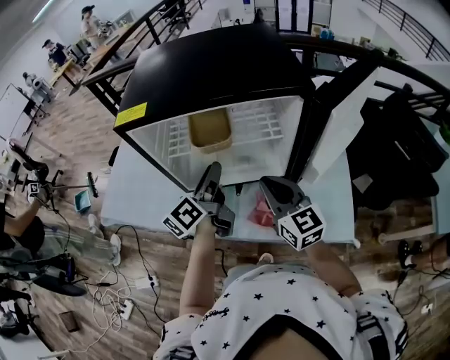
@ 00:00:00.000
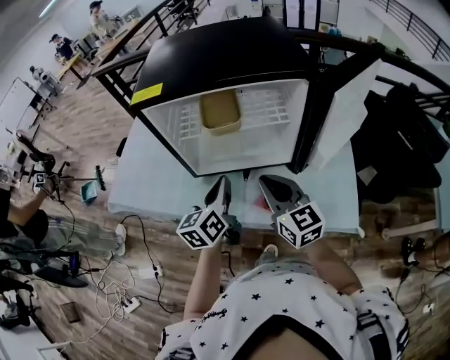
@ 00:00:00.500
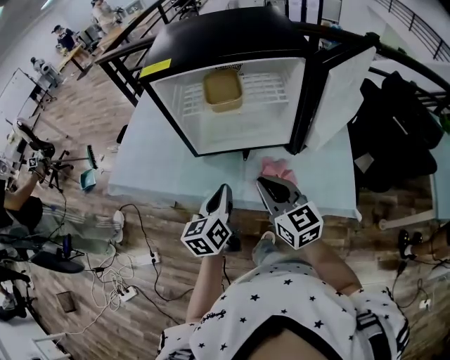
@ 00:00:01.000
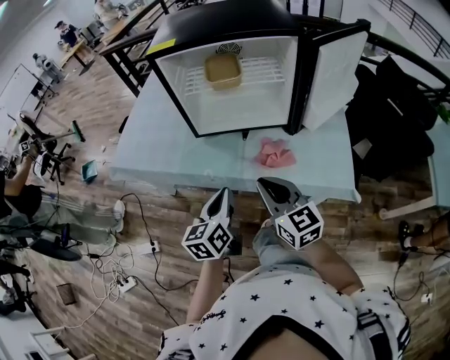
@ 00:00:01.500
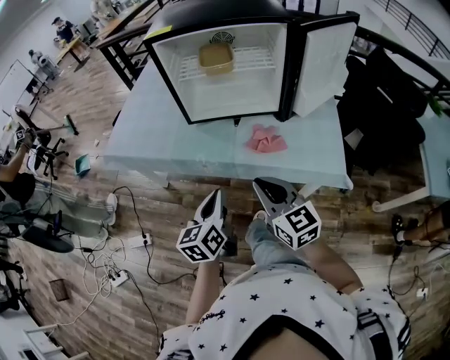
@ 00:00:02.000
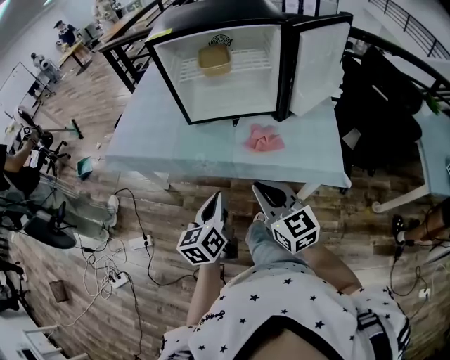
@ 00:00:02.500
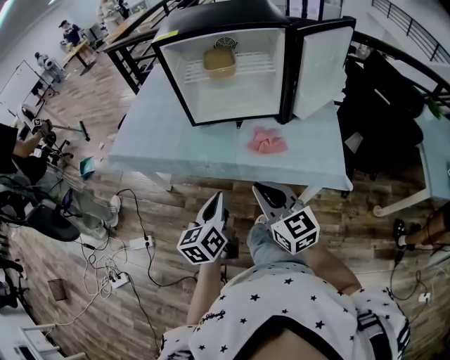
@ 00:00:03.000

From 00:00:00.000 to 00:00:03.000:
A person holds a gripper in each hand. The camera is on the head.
From 00:00:00.000 to 00:00:01.500: Both grippers move backward, some 25 cm. The left gripper swivels approximately 30 degrees, and closes.
From 00:00:01.500 to 00:00:03.000: Both grippers travel together backward, some 10 cm.

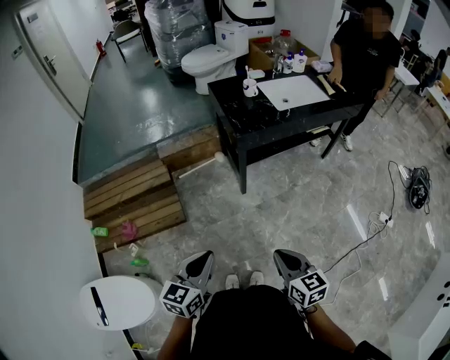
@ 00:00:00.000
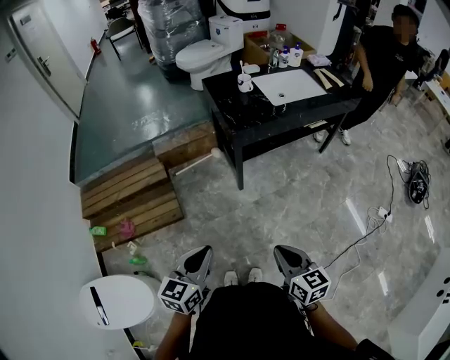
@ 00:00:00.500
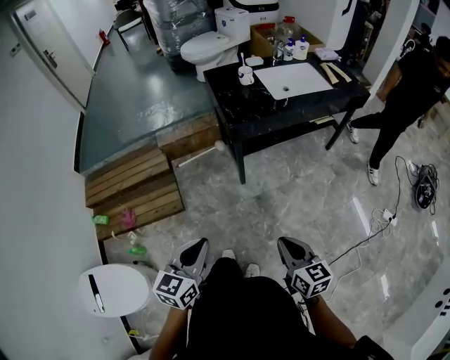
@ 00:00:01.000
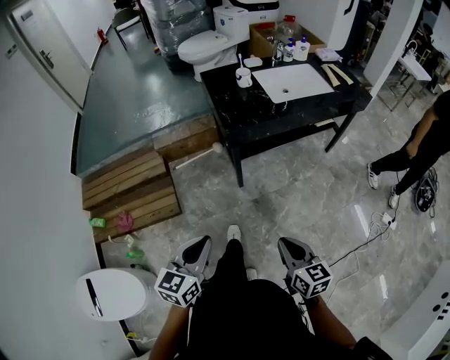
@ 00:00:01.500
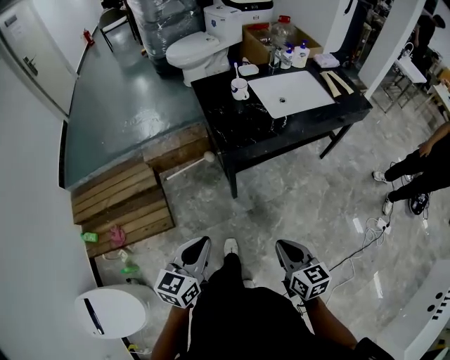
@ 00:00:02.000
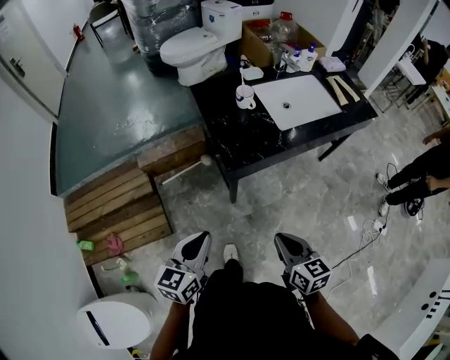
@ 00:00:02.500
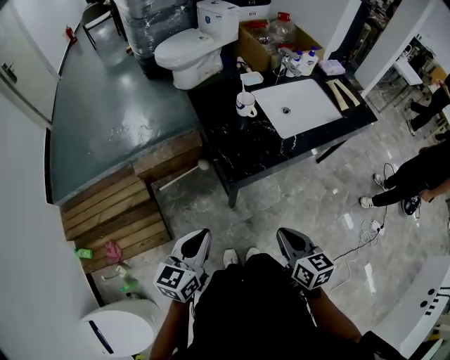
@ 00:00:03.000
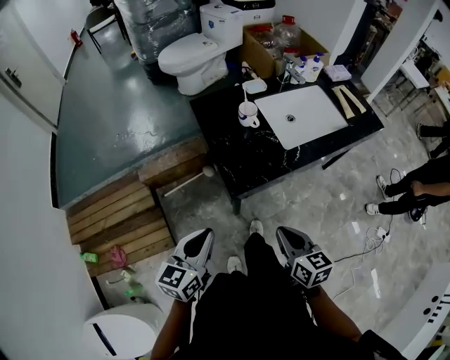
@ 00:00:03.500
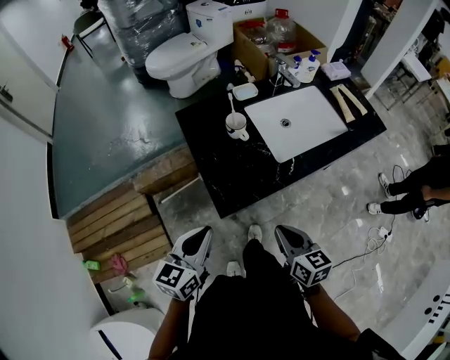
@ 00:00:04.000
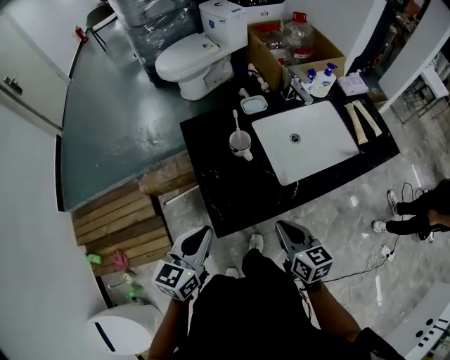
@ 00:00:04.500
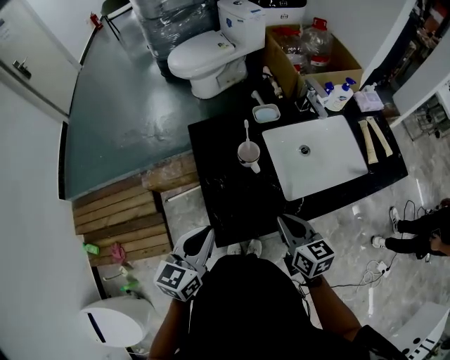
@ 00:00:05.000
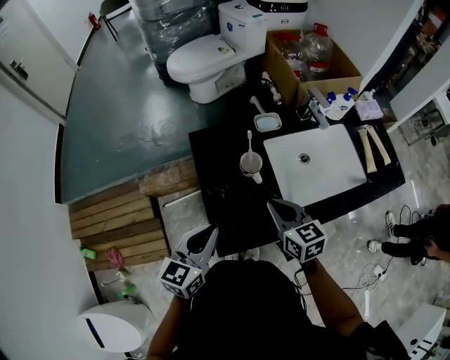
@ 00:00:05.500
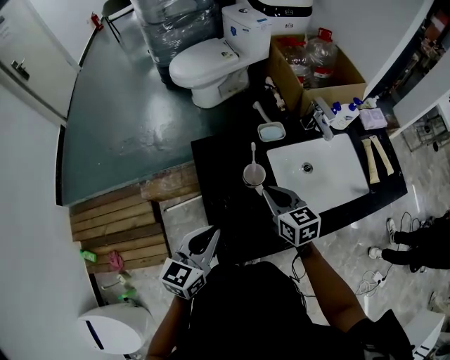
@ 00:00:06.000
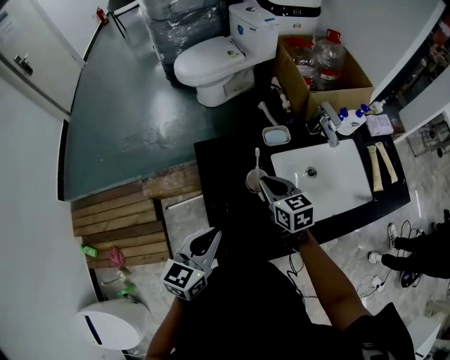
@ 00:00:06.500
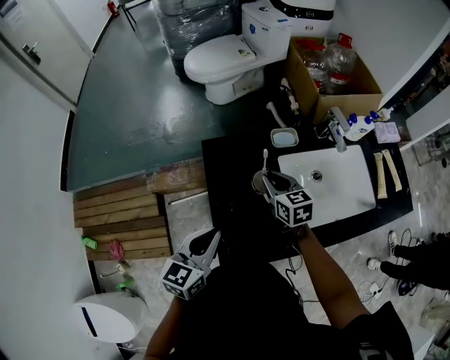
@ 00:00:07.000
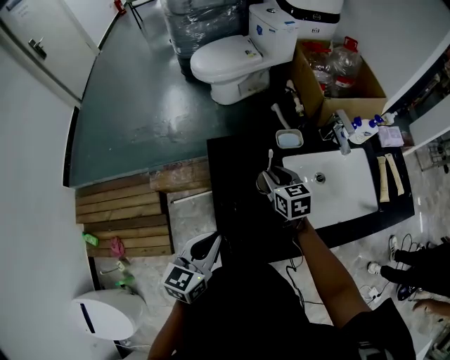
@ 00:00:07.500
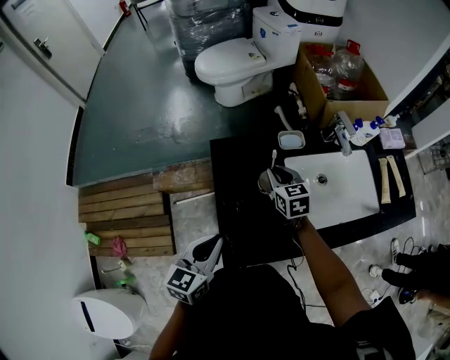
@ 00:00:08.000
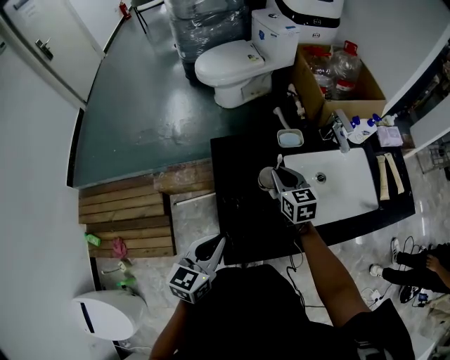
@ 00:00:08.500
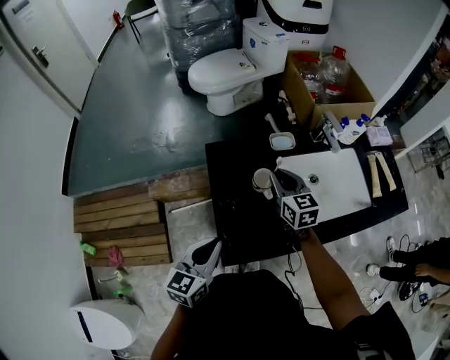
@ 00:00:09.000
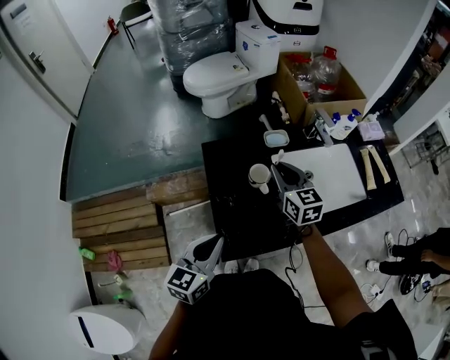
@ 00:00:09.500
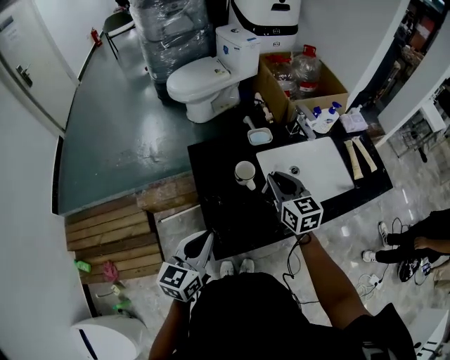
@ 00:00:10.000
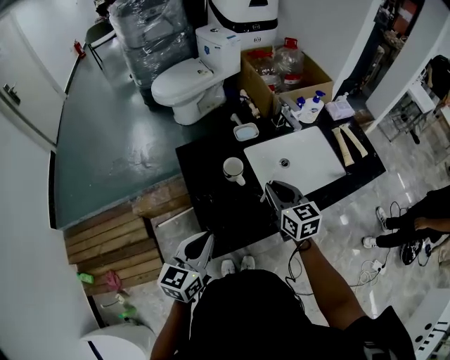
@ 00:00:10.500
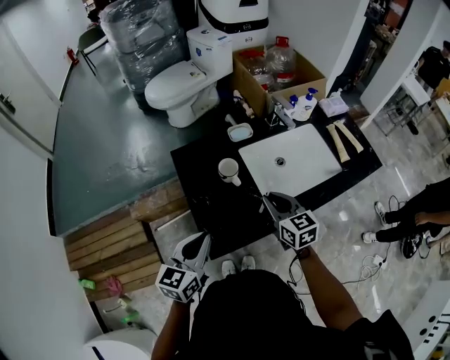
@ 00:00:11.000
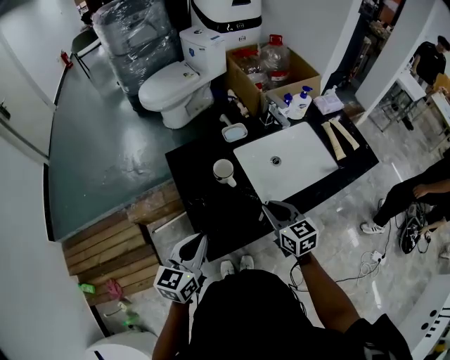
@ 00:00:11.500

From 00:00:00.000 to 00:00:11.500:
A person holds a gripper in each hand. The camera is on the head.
From 00:00:00.000 to 00:00:02.000: The right gripper is displaced forward and to the right by some 20 cm. Meanwhile the left gripper heads forward, covering roughly 20 cm.
From 00:00:02.000 to 00:00:04.000: Both grippers travel together forward, some 30 cm.
From 00:00:04.000 to 00:00:06.000: The right gripper shifts roughly 30 cm forward. Meanwhile the left gripper travels forward by about 20 cm.
From 00:00:06.000 to 00:00:07.500: The right gripper heads forward, covering approximately 10 cm, and opens up.
From 00:00:07.500 to 00:00:09.500: The left gripper ends up about 5 cm from where it was. The right gripper goes some 10 cm upward.
From 00:00:09.500 to 00:00:11.500: The right gripper goes some 20 cm backward, to the right and downward.

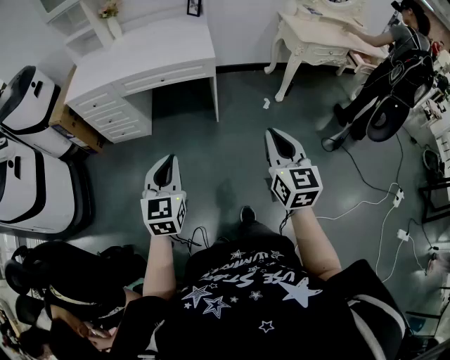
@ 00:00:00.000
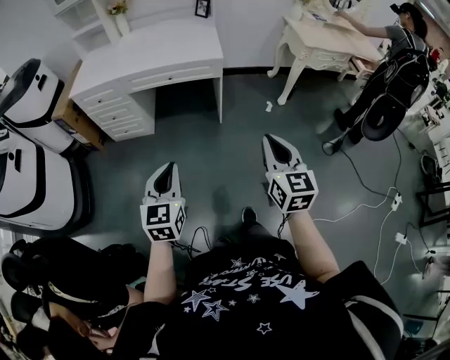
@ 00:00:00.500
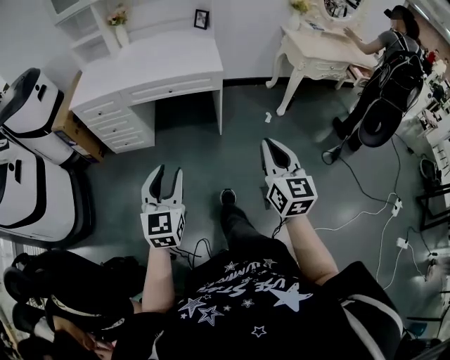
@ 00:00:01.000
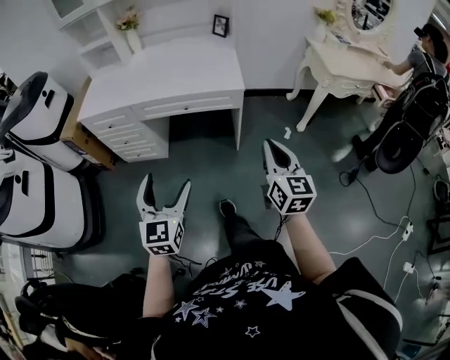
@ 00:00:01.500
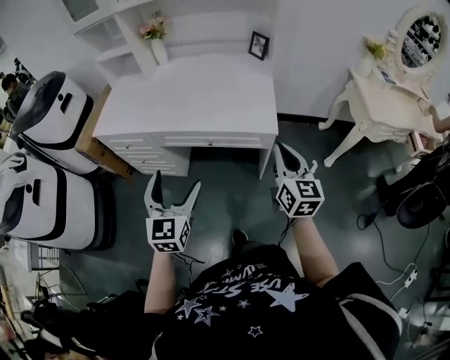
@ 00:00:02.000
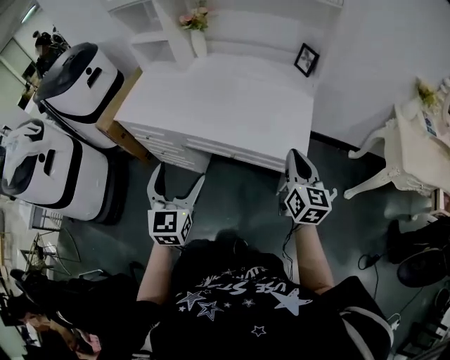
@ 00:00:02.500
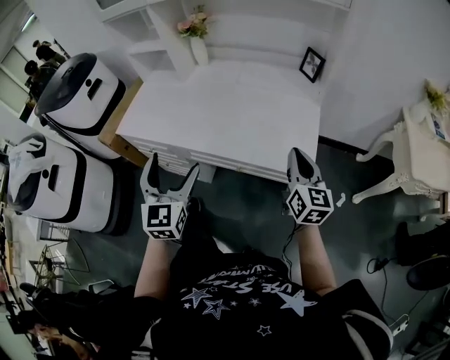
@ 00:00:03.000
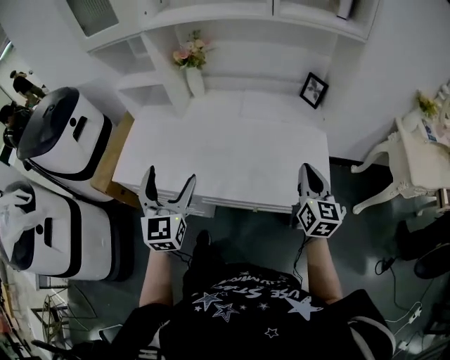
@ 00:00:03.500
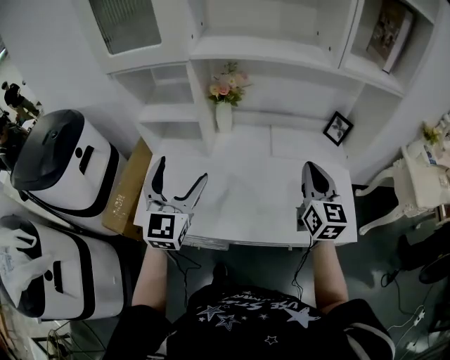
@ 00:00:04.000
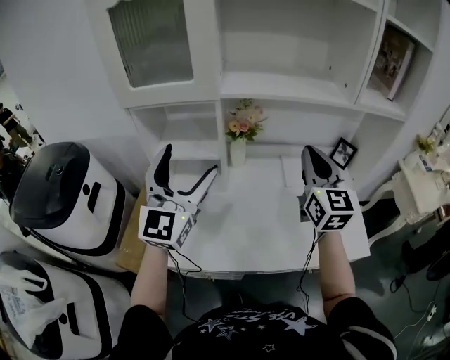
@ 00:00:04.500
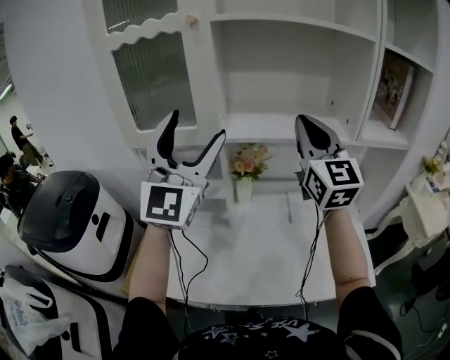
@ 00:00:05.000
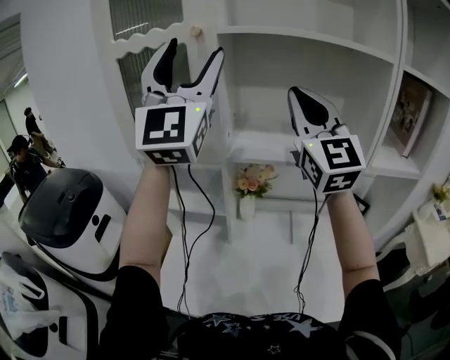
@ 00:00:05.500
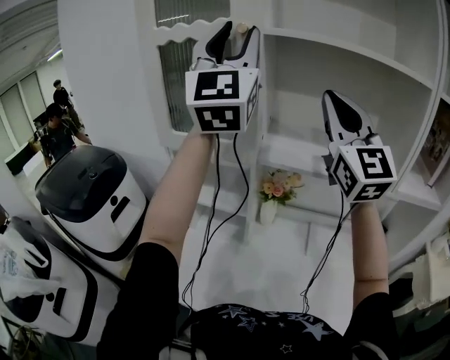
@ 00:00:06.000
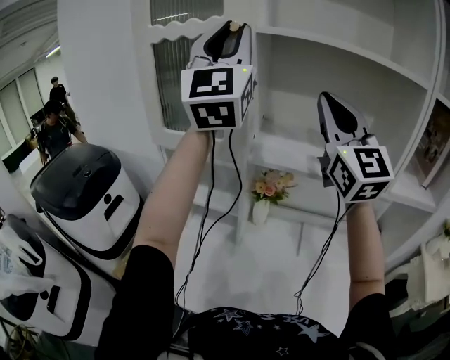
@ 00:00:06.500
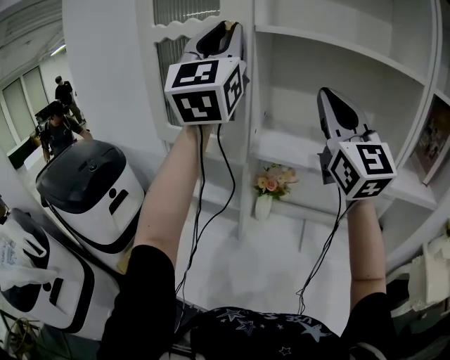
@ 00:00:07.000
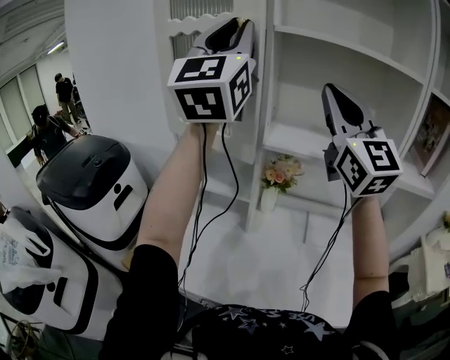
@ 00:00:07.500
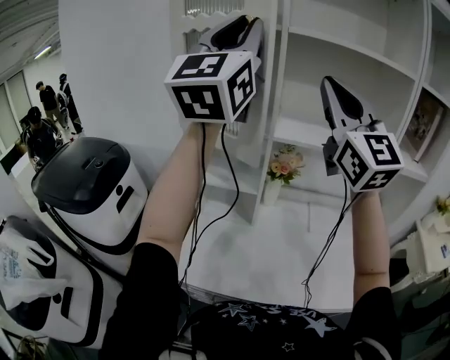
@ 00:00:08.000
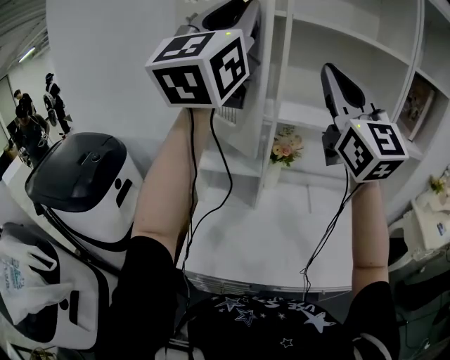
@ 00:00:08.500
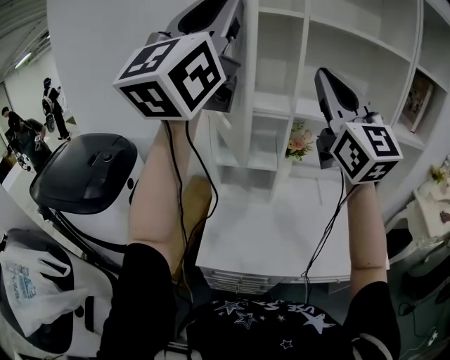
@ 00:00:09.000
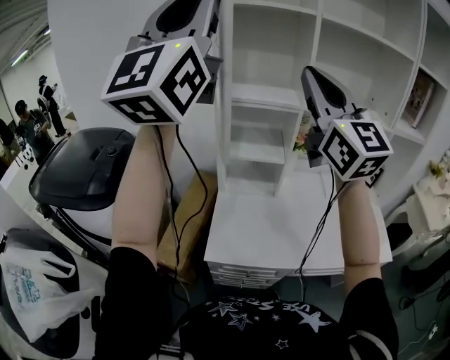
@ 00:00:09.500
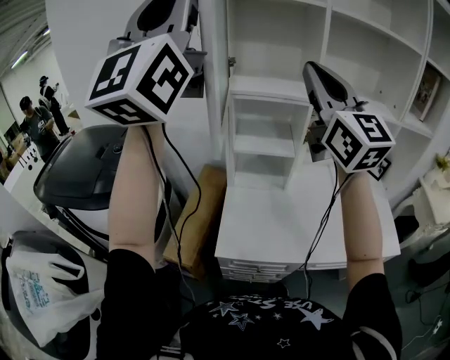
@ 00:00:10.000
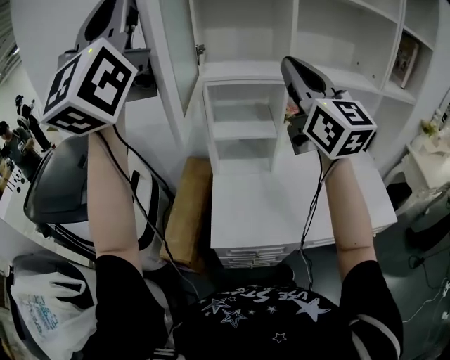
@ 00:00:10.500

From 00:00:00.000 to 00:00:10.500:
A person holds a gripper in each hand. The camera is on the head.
From 00:00:00.000 to 00:00:02.000: The grippers both shift forward by about 40 cm. The left gripper opens its fingers.
From 00:00:02.000 to 00:00:04.000: The two grippers travel together, forward and to the left, roughly 50 cm.
From 00:00:04.000 to 00:00:06.500: The right gripper shifts roughly 50 cm upward, forward and to the left, and turns by approximately 40 degrees, while the left gripper goes some 50 cm upward and forward, points its fingers about 40 degrees further upward, and closes up.
From 00:00:06.500 to 00:00:08.500: Both grippers move backward and to the left, approximately 20 cm. The left gripper rotates roughly 30 degrees.
From 00:00:08.500 to 00:00:10.500: The right gripper goes about 15 cm to the left and downward. The left gripper heads to the left, covering roughly 25 cm.

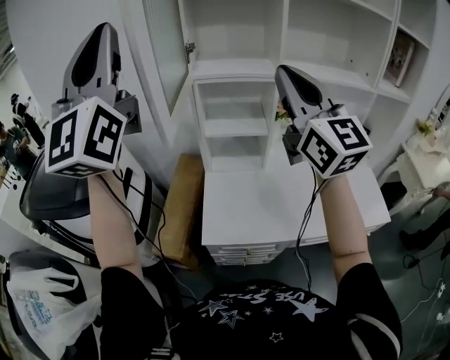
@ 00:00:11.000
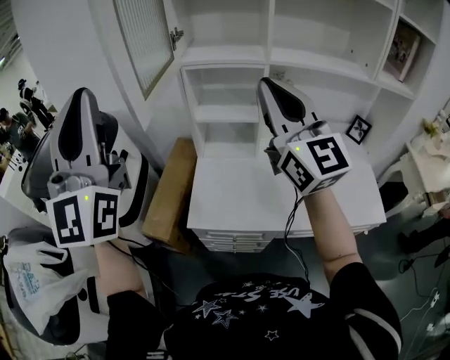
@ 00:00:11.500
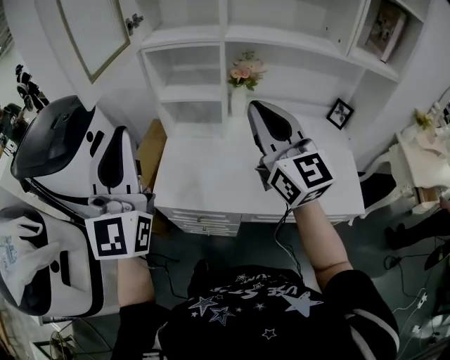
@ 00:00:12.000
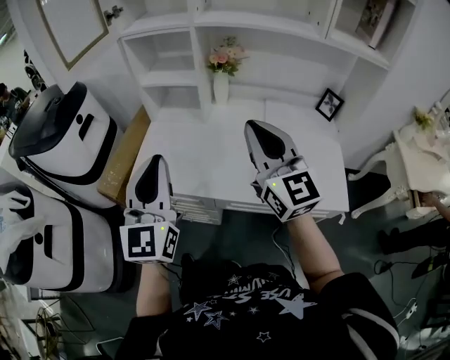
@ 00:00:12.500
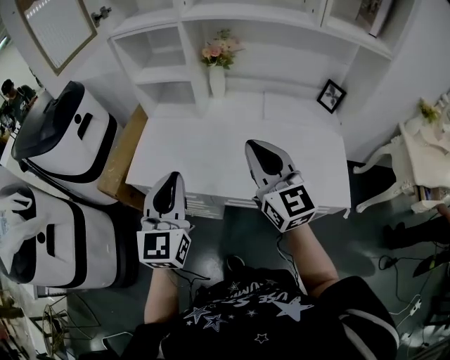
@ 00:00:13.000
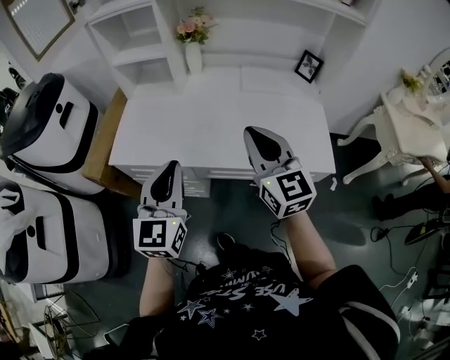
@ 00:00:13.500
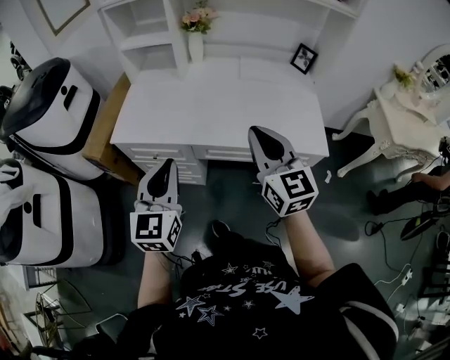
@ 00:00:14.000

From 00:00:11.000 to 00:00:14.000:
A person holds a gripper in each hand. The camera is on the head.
From 00:00:11.000 to 00:00:12.500: The left gripper shifts about 50 cm downward, to the right and backward, and tips its fingers downward by about 30 degrees. The right gripper shifts about 35 cm to the right, downward and backward.
From 00:00:12.500 to 00:00:14.000: The left gripper is displaced backward, downward and to the right by roughly 20 cm, while the right gripper moves backward and downward, some 20 cm.
